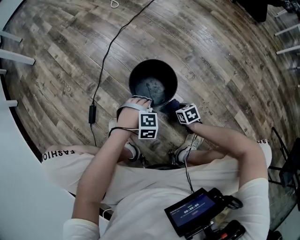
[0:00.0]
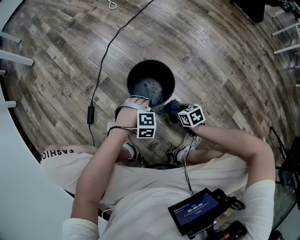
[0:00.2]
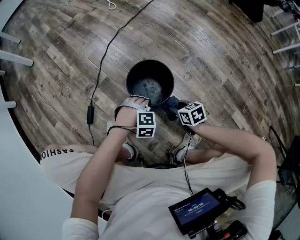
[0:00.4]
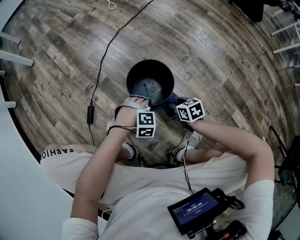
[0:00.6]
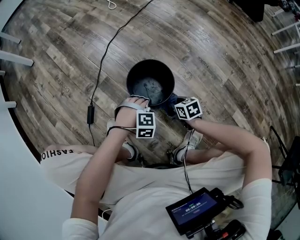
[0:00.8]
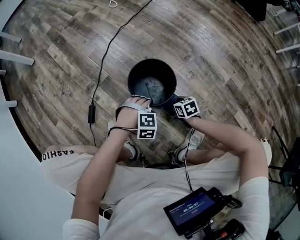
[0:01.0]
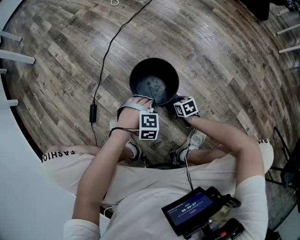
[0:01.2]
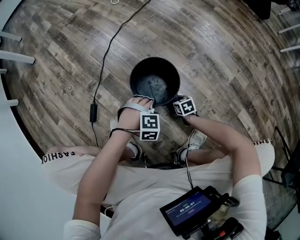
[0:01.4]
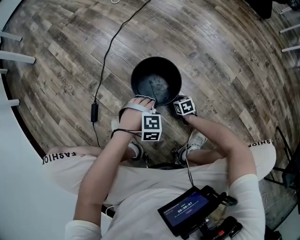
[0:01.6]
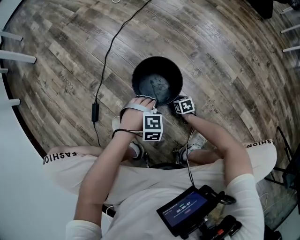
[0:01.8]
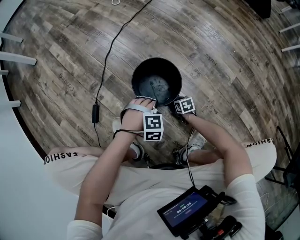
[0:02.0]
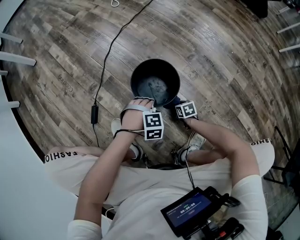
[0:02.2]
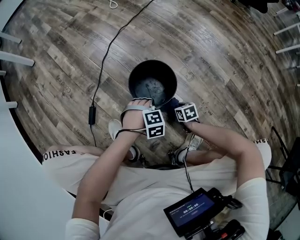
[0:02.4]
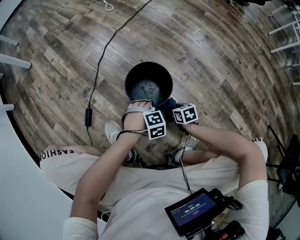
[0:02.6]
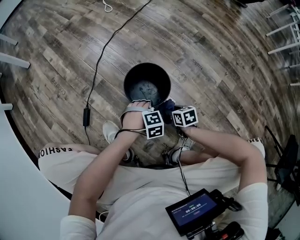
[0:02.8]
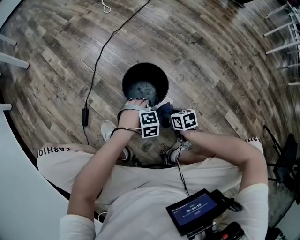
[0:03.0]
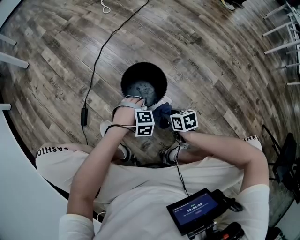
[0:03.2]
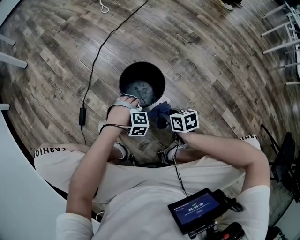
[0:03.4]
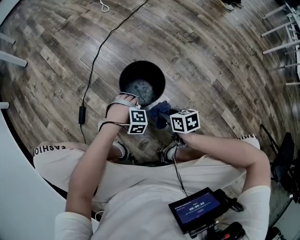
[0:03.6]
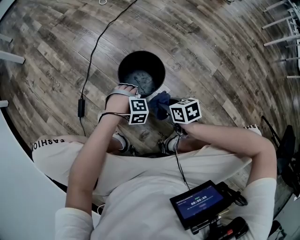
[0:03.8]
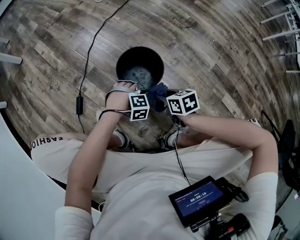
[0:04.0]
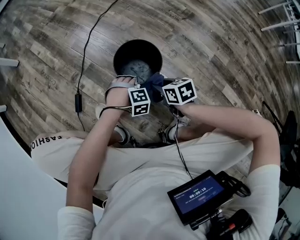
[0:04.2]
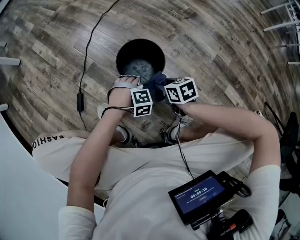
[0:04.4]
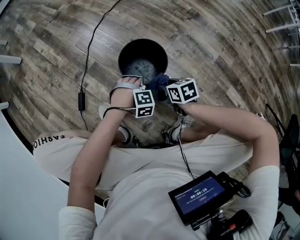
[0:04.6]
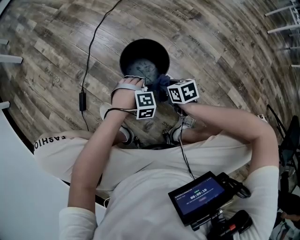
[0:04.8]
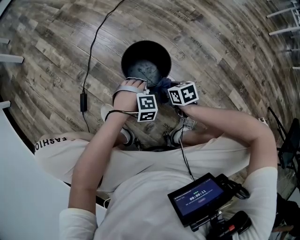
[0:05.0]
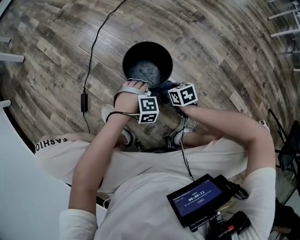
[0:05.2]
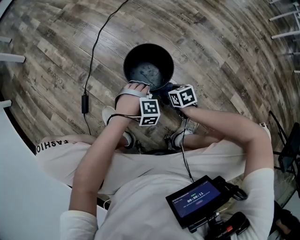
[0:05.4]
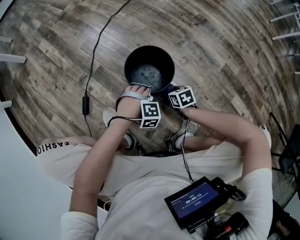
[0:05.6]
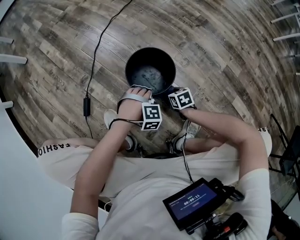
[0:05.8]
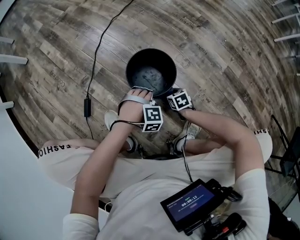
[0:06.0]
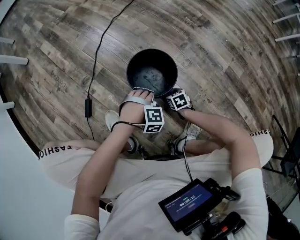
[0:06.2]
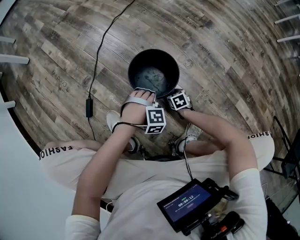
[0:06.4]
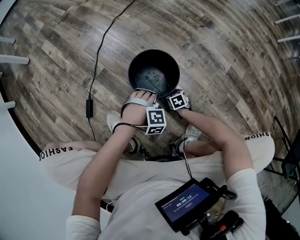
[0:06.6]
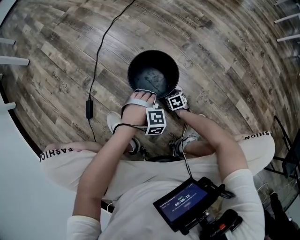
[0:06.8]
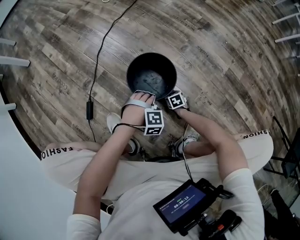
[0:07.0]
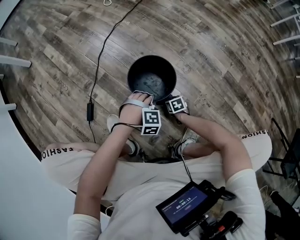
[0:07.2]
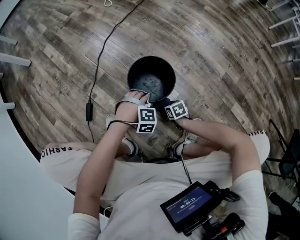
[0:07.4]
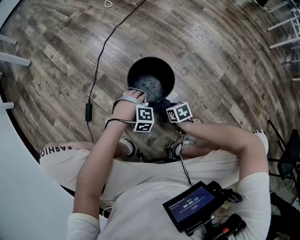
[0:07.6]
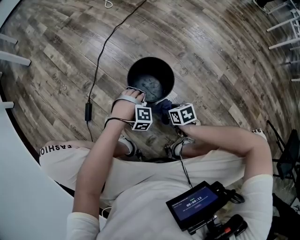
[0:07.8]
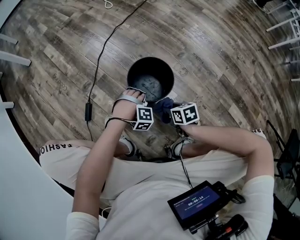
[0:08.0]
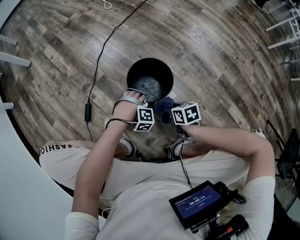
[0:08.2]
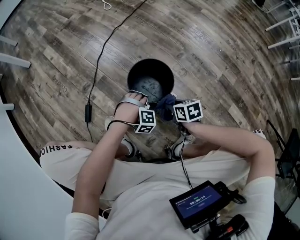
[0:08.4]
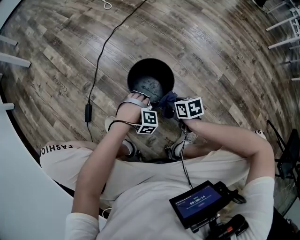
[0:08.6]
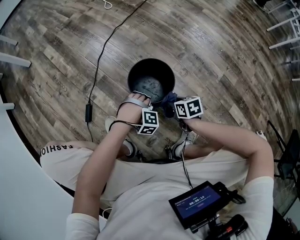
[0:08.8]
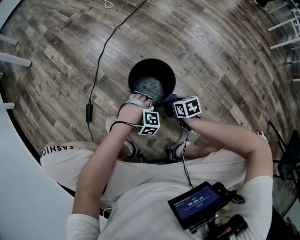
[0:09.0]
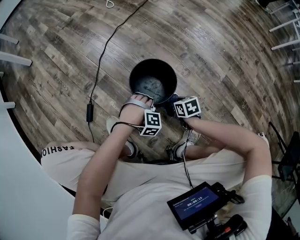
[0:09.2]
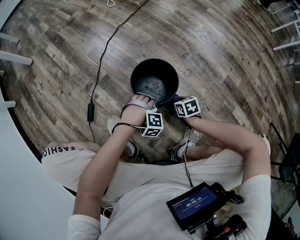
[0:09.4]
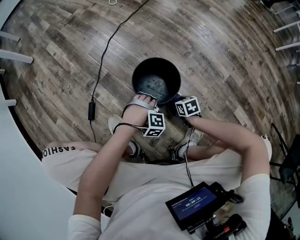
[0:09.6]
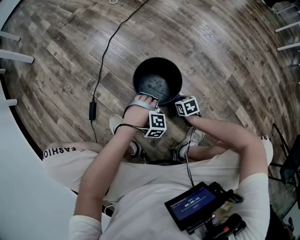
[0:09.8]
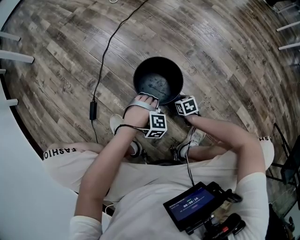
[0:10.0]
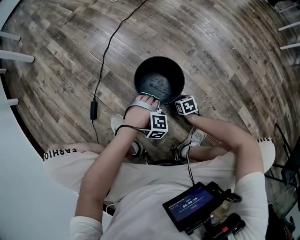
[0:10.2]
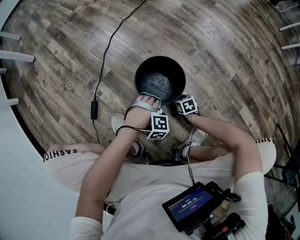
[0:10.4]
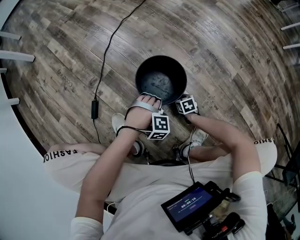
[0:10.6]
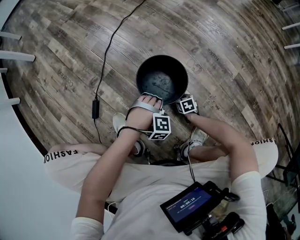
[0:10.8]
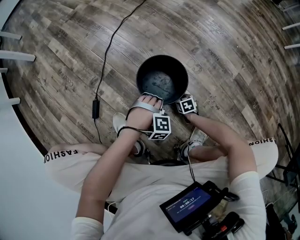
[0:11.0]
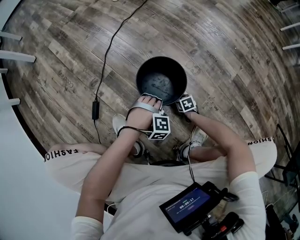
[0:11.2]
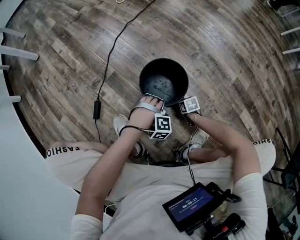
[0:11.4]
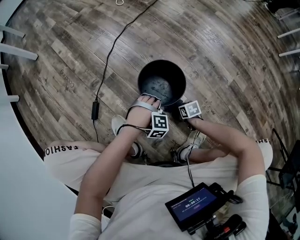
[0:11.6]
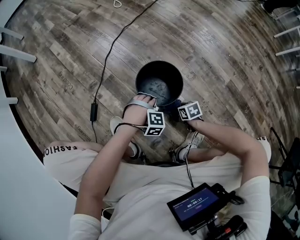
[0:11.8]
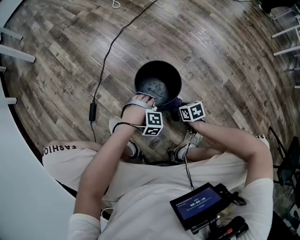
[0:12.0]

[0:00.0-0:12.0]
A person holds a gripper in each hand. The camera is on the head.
0:00.0 to 0:01.6: The right gripper moves downward, some 5 cm.
0:01.6 to 0:03.0: The right gripper moves upward, about 15 cm.
0:03.0 to 0:04.4: The right gripper travels upward by some 5 cm.
0:04.4 to 0:06.0: The right gripper shifts some 15 cm downward.
0:06.0 to 0:07.6: The right gripper shifts by approximately 10 cm.
0:07.6 to 0:09.0: The right gripper shifts by about 5 cm.
0:09.0 to 0:10.4: The right gripper goes some 15 cm downward.
0:10.4 to 0:12.0: The right gripper is displaced upward by roughly 10 cm.

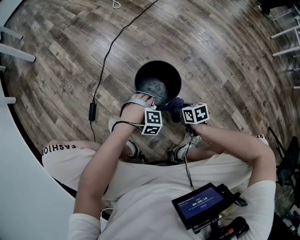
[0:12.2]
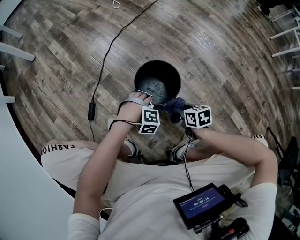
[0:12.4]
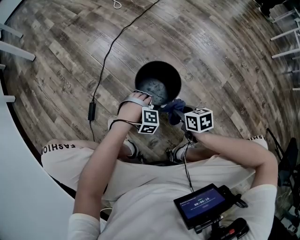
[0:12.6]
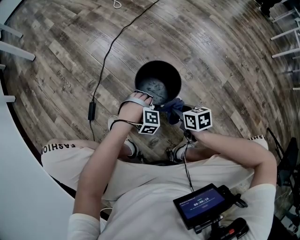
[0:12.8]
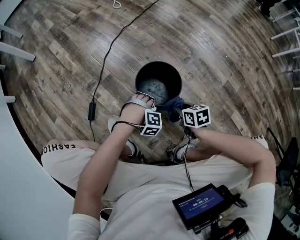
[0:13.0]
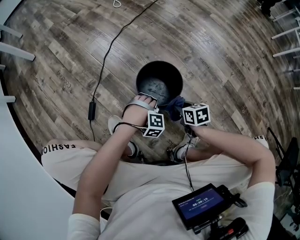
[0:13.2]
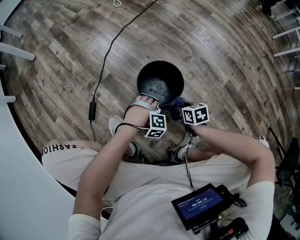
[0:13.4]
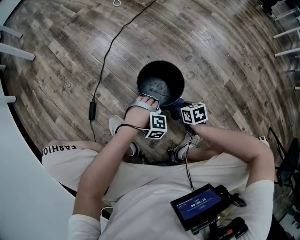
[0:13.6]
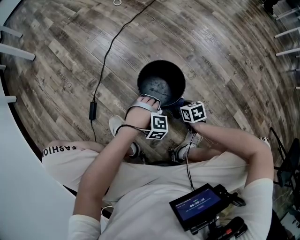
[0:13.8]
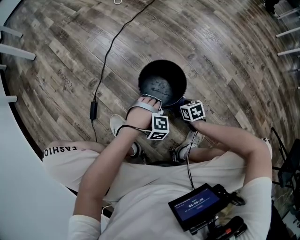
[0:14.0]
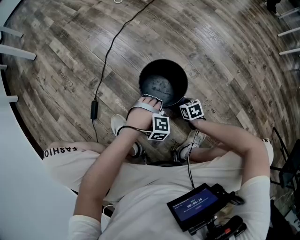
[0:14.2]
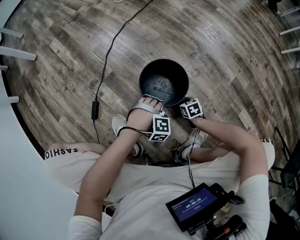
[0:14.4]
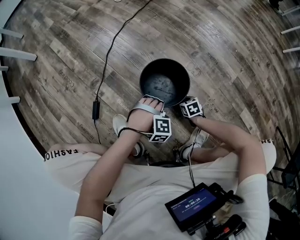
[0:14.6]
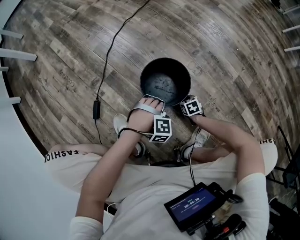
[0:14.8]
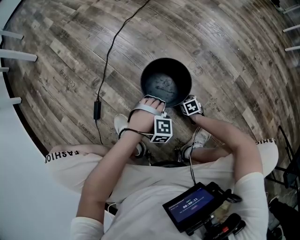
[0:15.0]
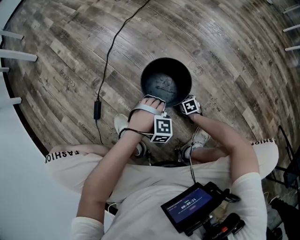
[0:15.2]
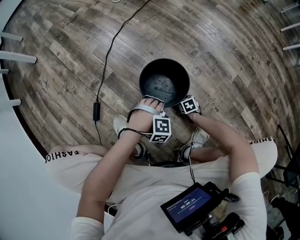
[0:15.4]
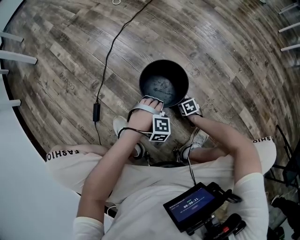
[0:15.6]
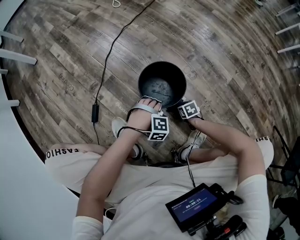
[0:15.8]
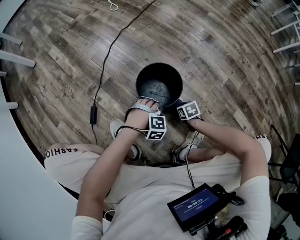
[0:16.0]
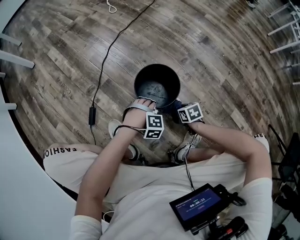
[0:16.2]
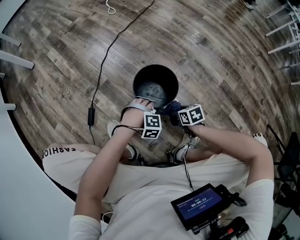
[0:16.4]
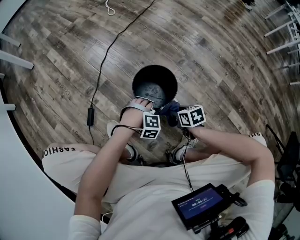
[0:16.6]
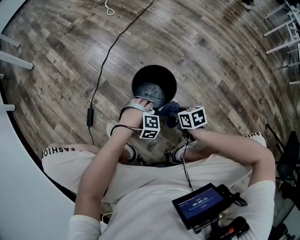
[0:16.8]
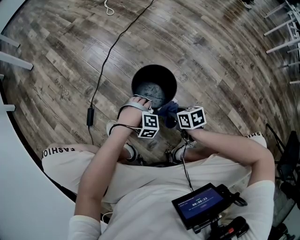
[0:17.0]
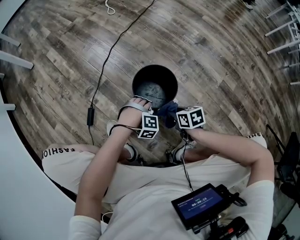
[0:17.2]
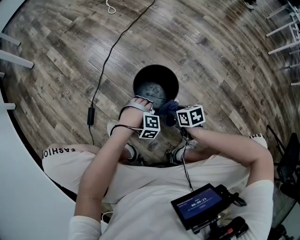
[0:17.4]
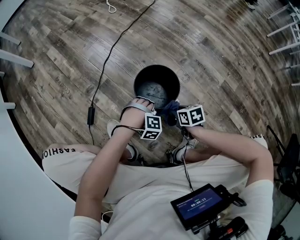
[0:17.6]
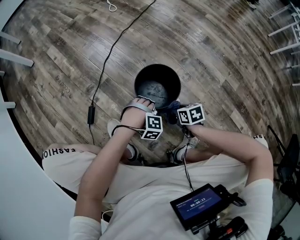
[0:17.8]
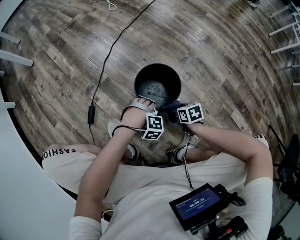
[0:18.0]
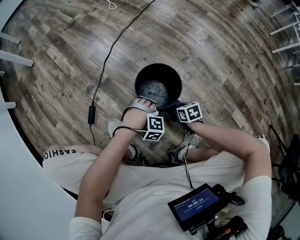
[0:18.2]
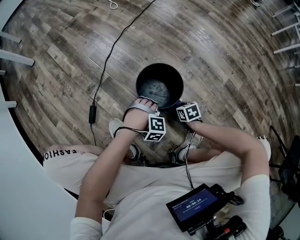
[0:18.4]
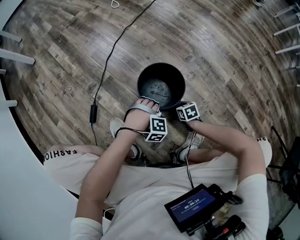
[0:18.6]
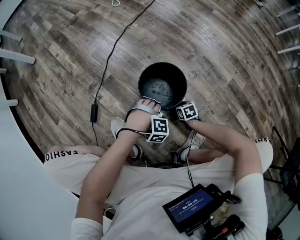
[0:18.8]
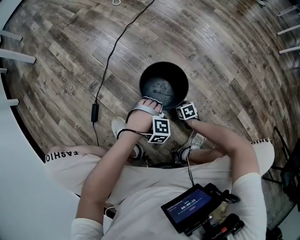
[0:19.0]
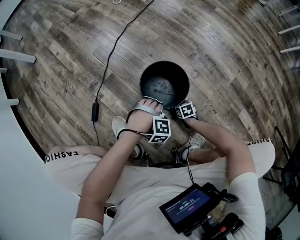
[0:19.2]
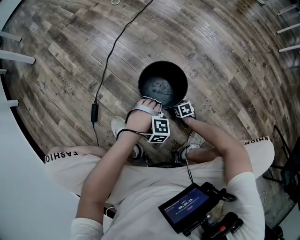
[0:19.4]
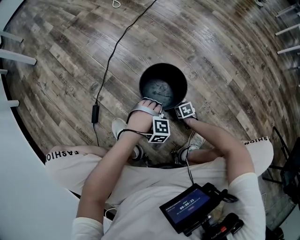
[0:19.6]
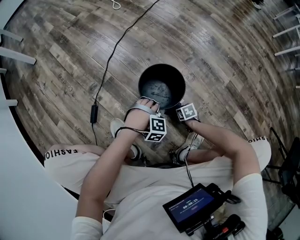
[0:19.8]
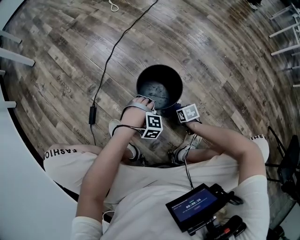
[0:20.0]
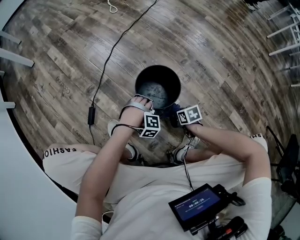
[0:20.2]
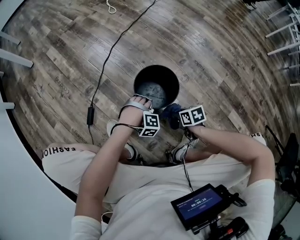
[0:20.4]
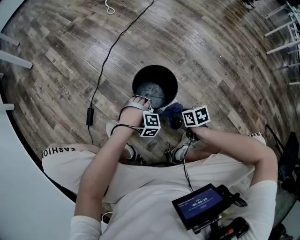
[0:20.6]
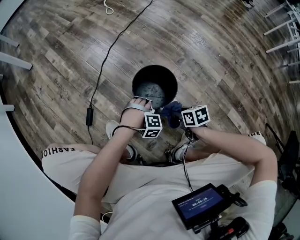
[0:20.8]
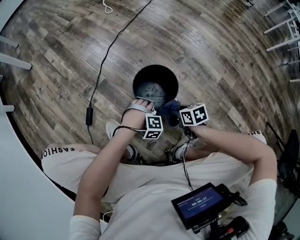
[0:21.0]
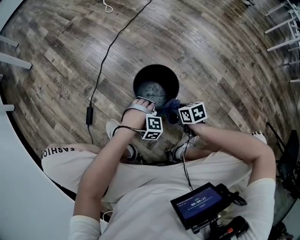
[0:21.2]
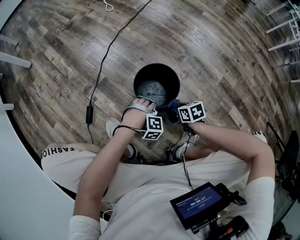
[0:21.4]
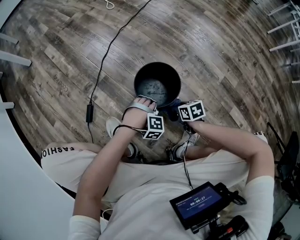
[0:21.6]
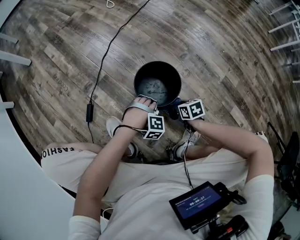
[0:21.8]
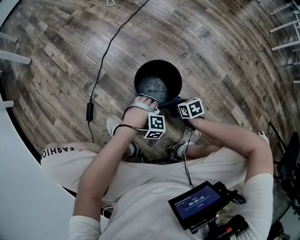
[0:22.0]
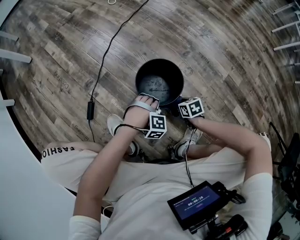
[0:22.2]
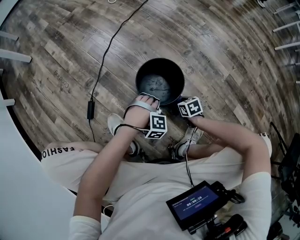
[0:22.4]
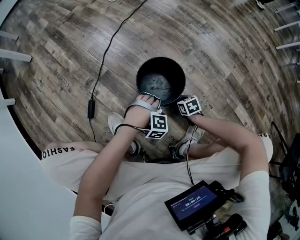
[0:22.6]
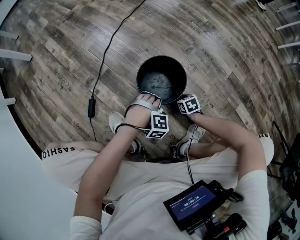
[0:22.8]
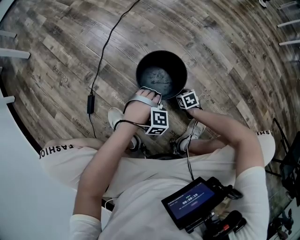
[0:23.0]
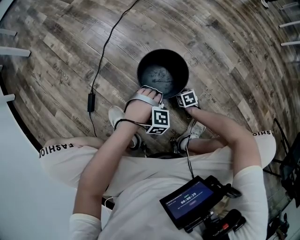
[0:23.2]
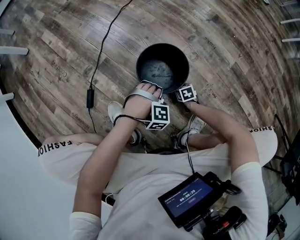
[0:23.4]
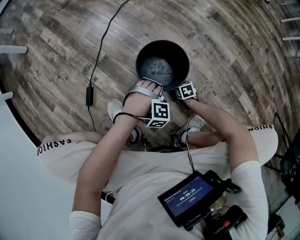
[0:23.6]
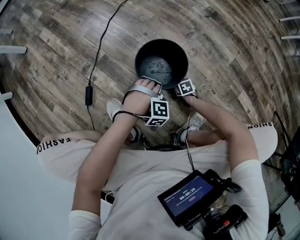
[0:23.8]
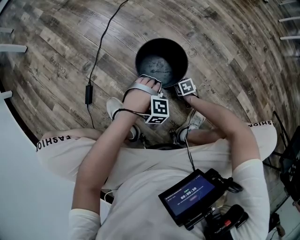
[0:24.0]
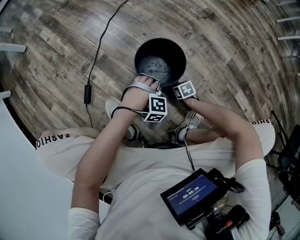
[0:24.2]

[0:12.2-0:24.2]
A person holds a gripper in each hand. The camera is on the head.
0:13.8 to 0:15.2: The right gripper travels downward by roughly 15 cm.
0:15.2 to 0:16.6: The right gripper shifts about 20 cm upward.
0:16.6 to 0:18.2: The right gripper heads downward, covering about 5 cm.
0:18.2 to 0:19.8: The right gripper travels downward by about 10 cm.
0:19.8 to 0:21.2: The right gripper moves upward, roughly 15 cm.
0:21.2 to 0:22.6: The right gripper goes approximately 15 cm downward.
